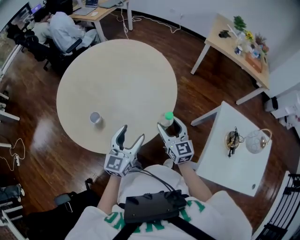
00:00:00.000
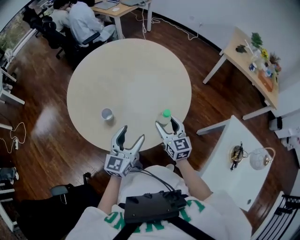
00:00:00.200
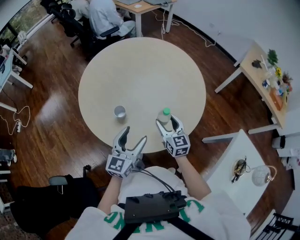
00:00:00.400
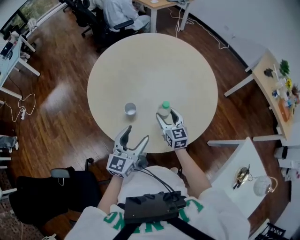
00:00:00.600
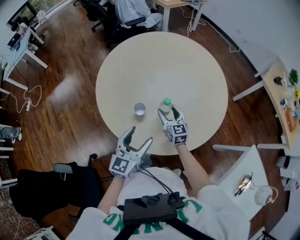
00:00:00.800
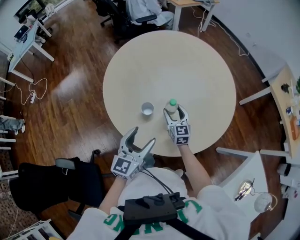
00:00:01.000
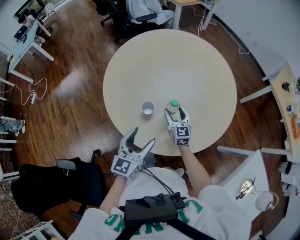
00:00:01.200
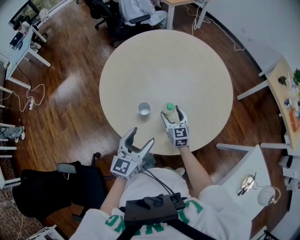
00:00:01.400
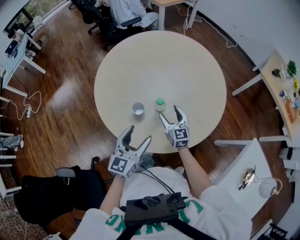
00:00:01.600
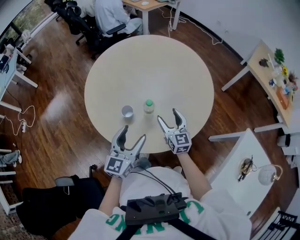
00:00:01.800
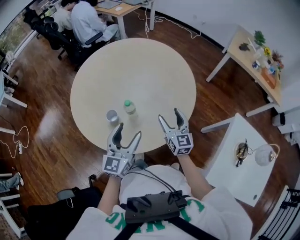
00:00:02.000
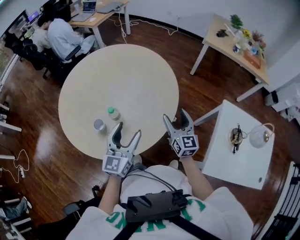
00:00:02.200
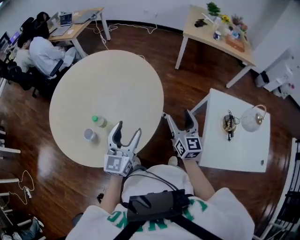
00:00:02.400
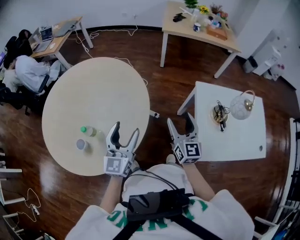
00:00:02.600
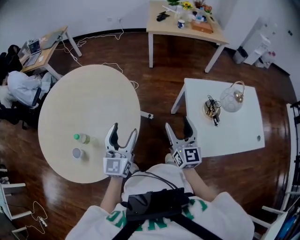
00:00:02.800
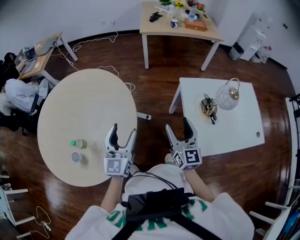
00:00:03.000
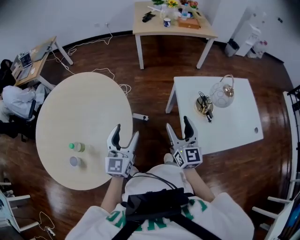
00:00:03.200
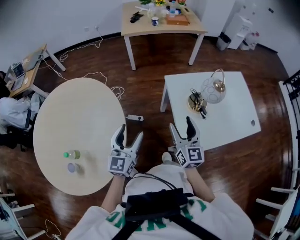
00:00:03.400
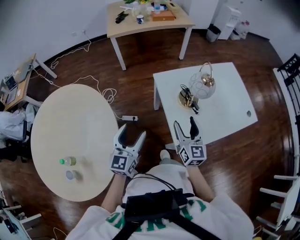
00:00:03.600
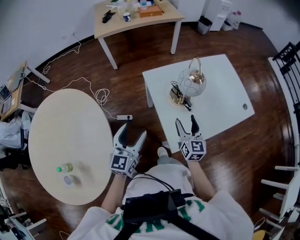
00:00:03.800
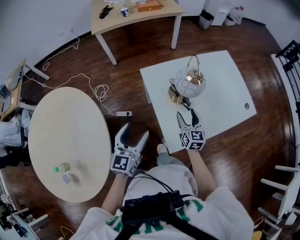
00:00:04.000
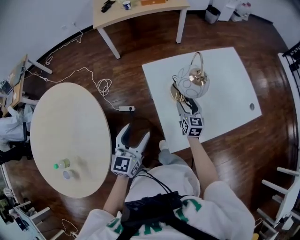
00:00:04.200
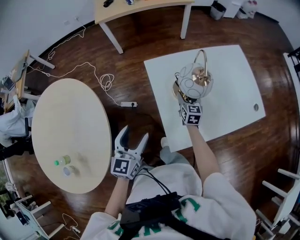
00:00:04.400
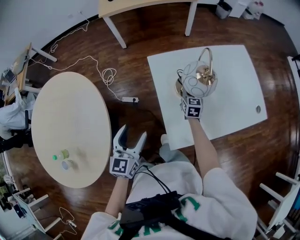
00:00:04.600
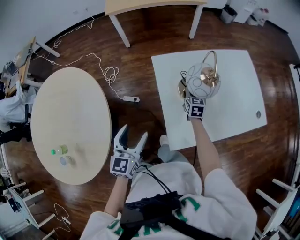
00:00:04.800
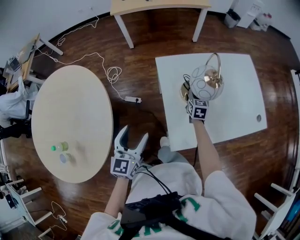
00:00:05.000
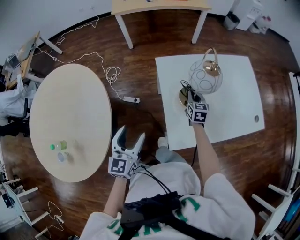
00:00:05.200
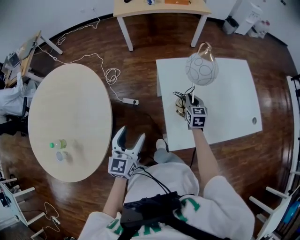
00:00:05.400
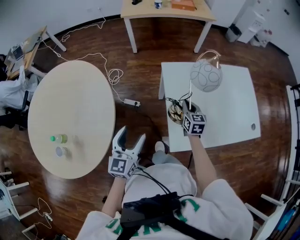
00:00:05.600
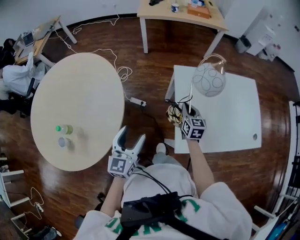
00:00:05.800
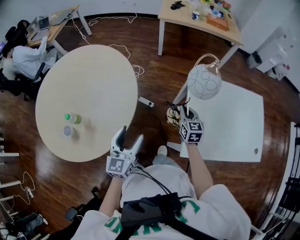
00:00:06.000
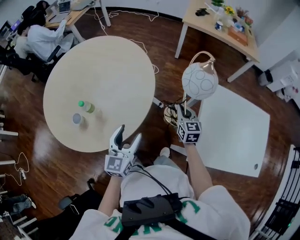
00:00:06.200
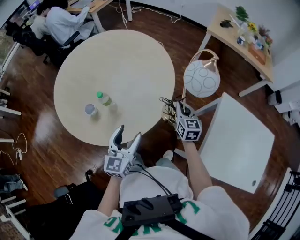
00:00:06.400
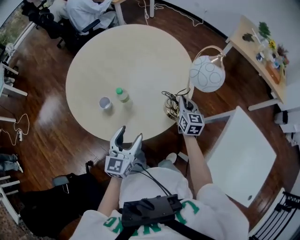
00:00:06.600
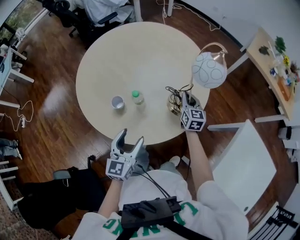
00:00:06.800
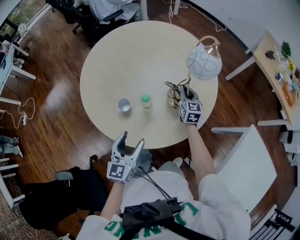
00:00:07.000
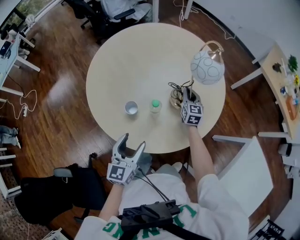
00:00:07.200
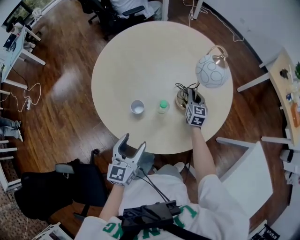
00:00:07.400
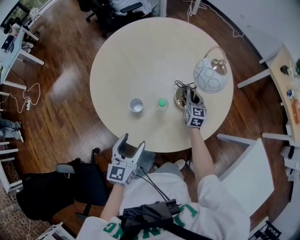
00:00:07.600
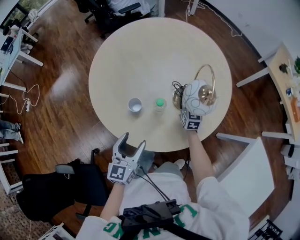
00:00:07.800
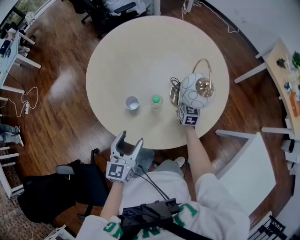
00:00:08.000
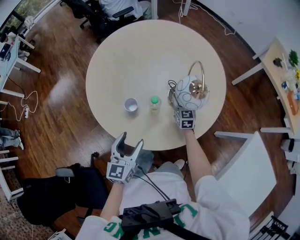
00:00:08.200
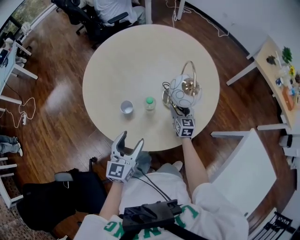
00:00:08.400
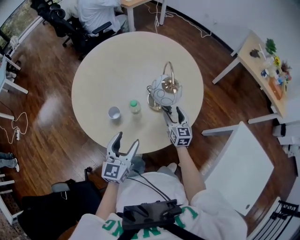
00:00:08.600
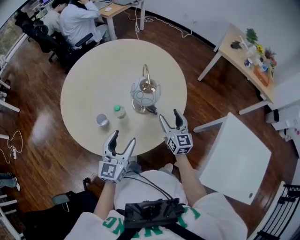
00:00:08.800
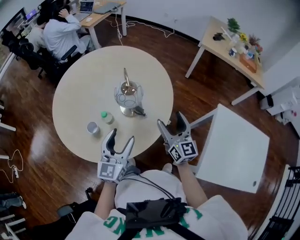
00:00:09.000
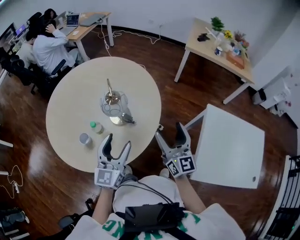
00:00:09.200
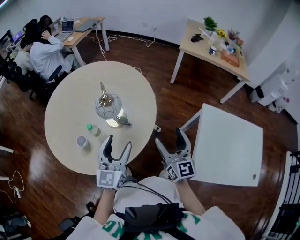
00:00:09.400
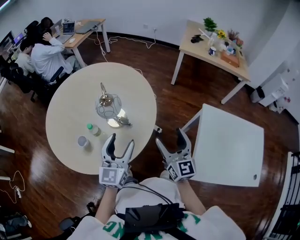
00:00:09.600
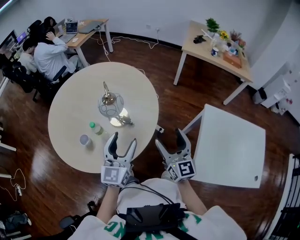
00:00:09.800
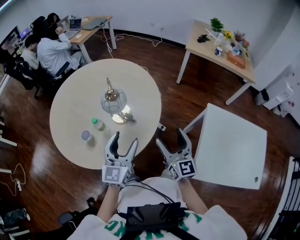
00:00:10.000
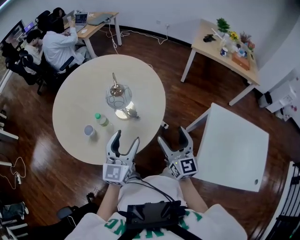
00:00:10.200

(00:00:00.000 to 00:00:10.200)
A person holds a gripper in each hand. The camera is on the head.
00:00:00.000 - 00:00:01.400: The left gripper goes about 20 cm to the left, and swivels roughly 20 degrees; the right gripper shifts approximately 35 cm to the left, forward and downward, and rotates about 20 degrees.
00:00:01.400 - 00:00:03.000: The right gripper moves some 60 cm, and turns by approximately 60 degrees. The left gripper changes place by roughly 35 cm, and rotates some 40 degrees.
00:00:03.000 - 00:00:04.400: The right gripper travels to the right, downward and forward by roughly 40 cm, and swivels some 30 degrees, while the left gripper travels to the right by about 25 cm, and turns by some 30 degrees.
00:00:04.400 - 00:00:05.800: The left gripper heads to the left and backward, covering some 15 cm, while the right gripper shifts about 15 cm to the left, upward and backward, and closes up.
00:00:05.800 - 00:00:07.200: The pair of grippers is taken about 50 cm. The left gripper turns by roughly 50 degrees. Meanwhile the right gripper turns by about 50 degrees.
00:00:07.200 - 00:00:08.800: The left gripper travels to the right and upward by some 10 cm. Meanwhile the right gripper moves backward and upward, some 20 cm, and opens up.
00:00:08.800 - 00:00:10.200: The left gripper goes some 15 cm to the right and upward, while the right gripper travels to the right, backward and upward by roughly 20 cm.

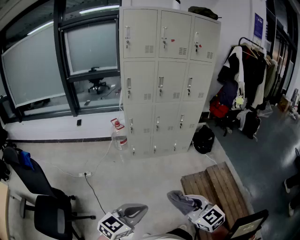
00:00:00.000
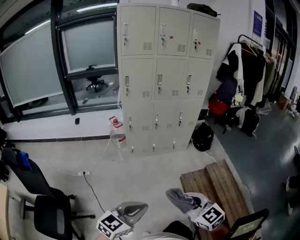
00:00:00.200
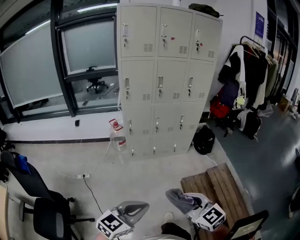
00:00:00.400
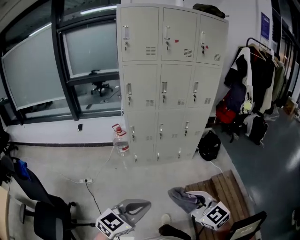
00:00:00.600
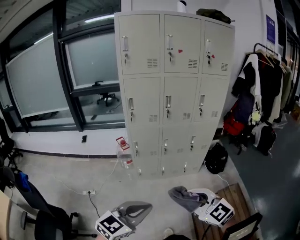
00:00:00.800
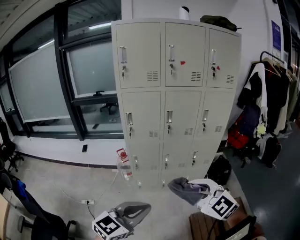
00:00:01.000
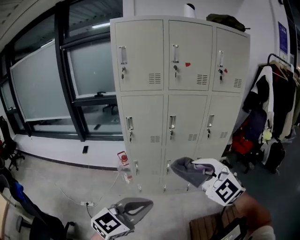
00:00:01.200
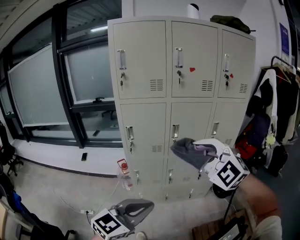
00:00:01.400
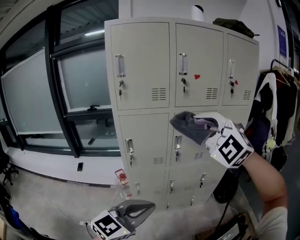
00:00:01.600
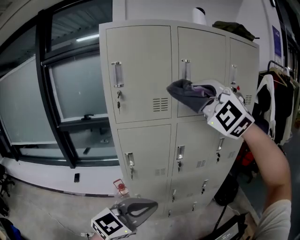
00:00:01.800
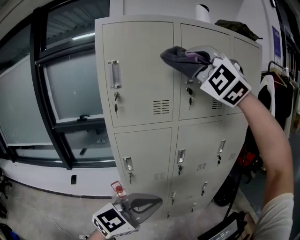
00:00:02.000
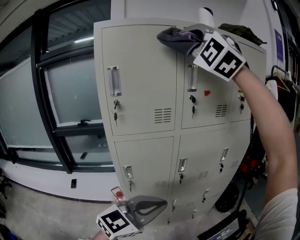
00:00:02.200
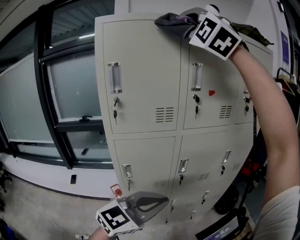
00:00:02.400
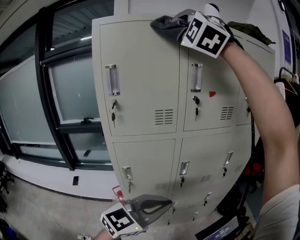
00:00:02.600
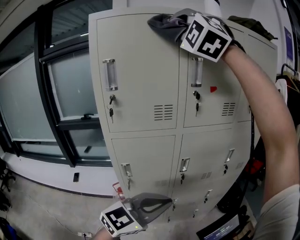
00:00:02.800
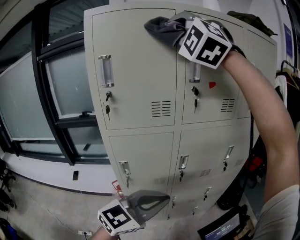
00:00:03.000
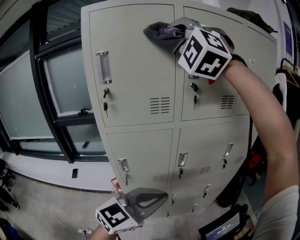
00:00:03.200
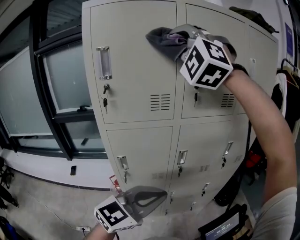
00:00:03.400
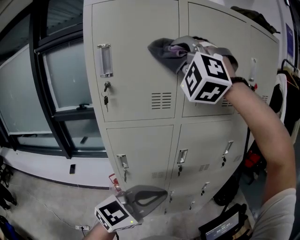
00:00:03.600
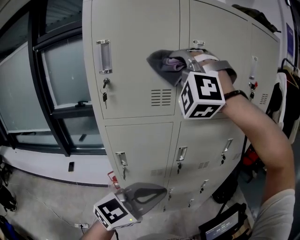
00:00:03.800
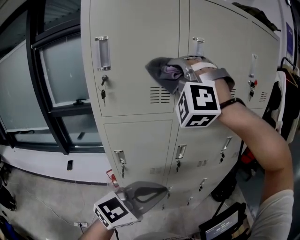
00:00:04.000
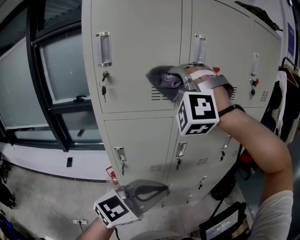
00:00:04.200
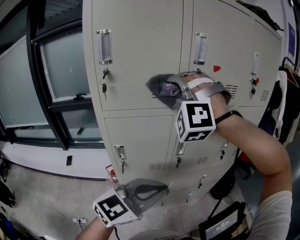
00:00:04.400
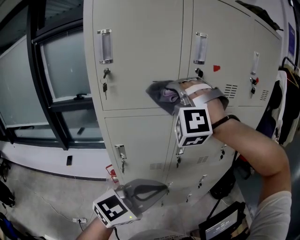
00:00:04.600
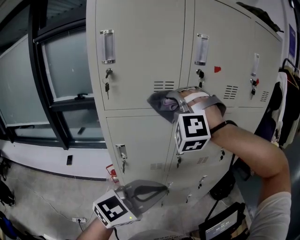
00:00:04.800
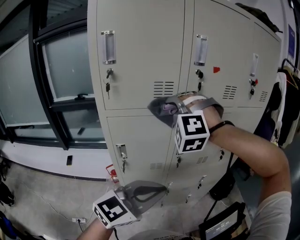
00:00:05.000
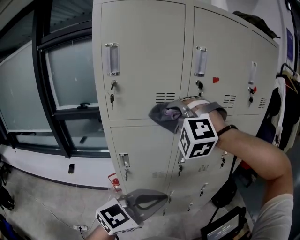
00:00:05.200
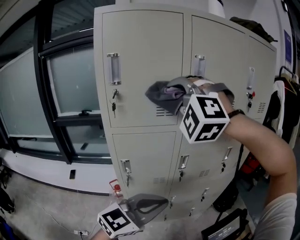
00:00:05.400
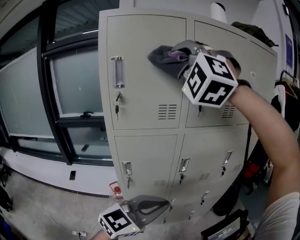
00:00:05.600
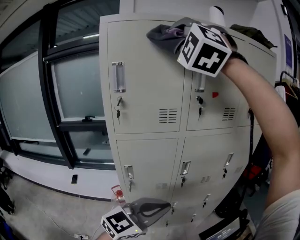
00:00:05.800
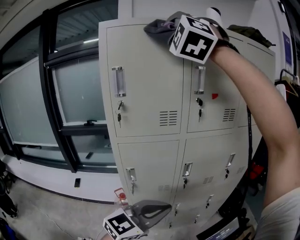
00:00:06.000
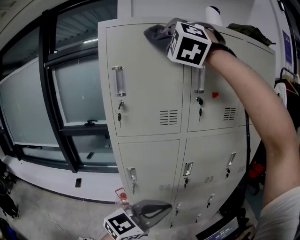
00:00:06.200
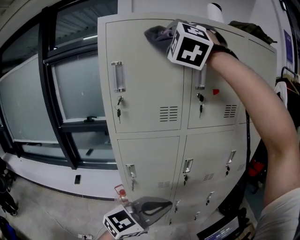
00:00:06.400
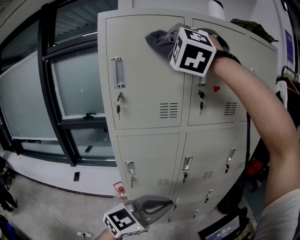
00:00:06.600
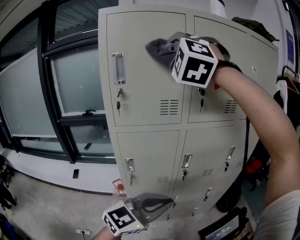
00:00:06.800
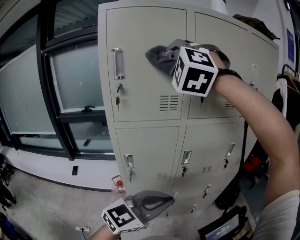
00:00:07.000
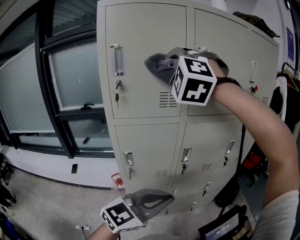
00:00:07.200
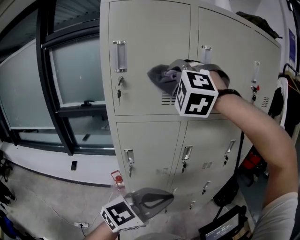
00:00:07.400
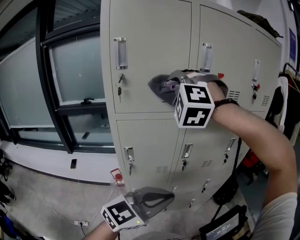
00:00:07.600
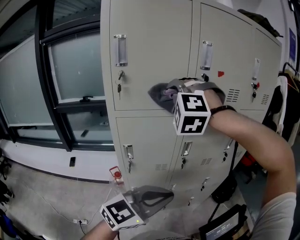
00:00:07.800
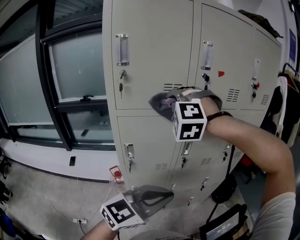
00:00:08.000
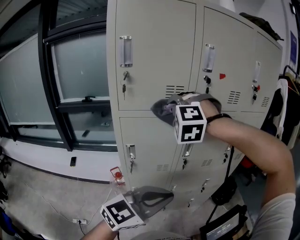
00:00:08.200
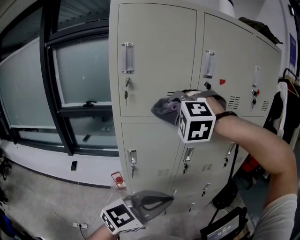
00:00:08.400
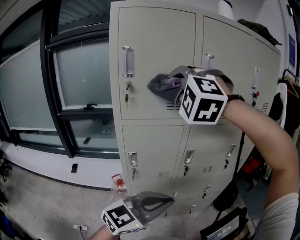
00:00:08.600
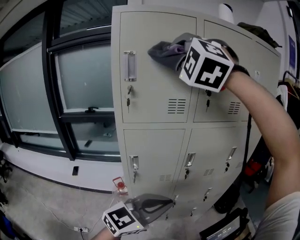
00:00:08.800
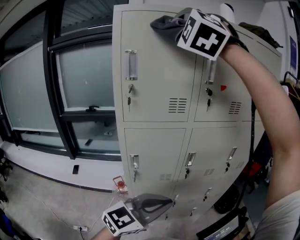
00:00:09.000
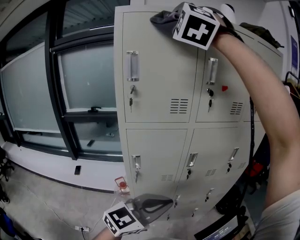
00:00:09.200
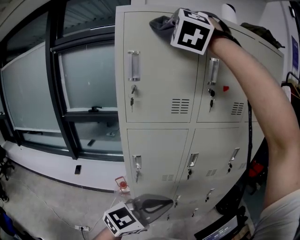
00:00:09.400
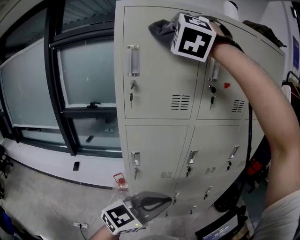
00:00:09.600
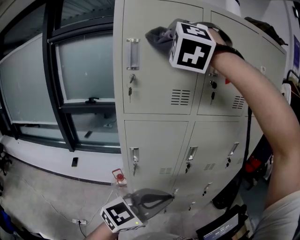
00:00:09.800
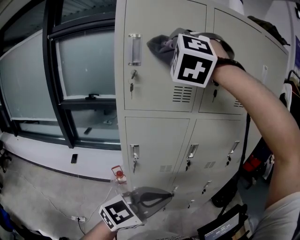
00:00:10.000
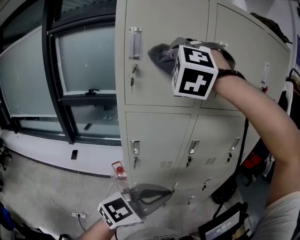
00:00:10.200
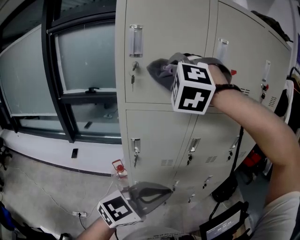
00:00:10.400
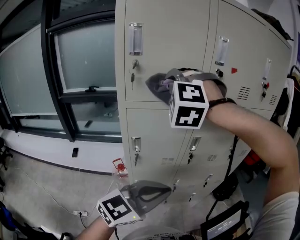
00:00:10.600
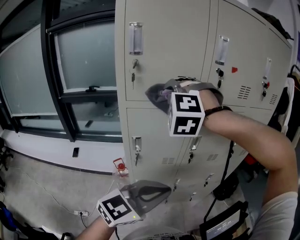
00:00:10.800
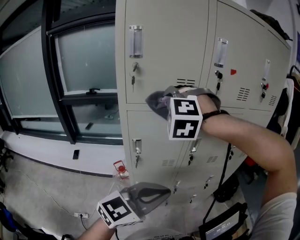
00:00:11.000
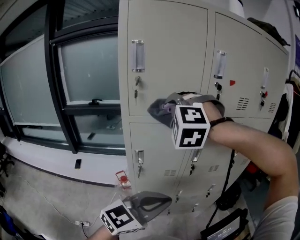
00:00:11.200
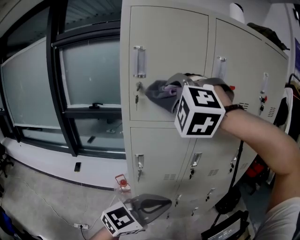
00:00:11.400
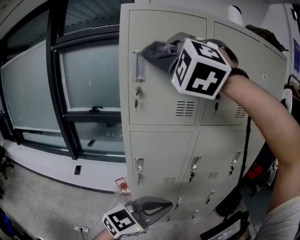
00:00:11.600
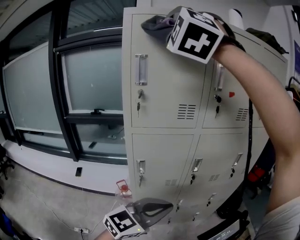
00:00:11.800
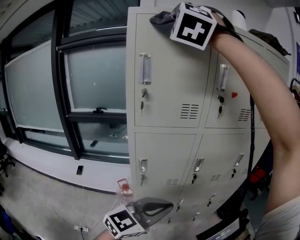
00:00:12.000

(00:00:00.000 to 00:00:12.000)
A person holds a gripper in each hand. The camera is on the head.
00:00:00.000 - 00:00:01.600: The left gripper shifts by about 50 cm.
00:00:01.600 - 00:00:03.000: The left gripper shifts by roughly 20 cm.

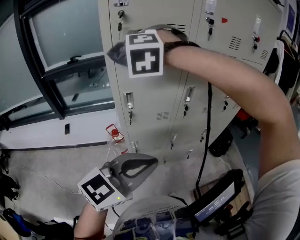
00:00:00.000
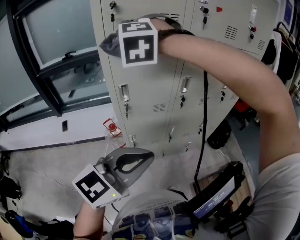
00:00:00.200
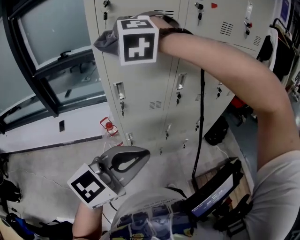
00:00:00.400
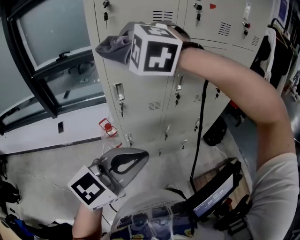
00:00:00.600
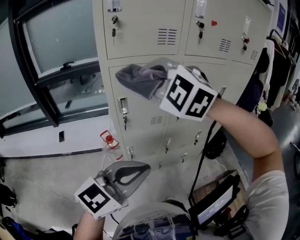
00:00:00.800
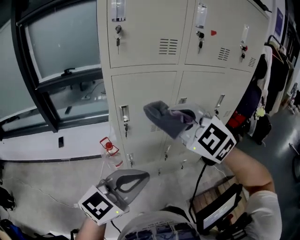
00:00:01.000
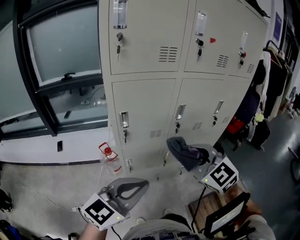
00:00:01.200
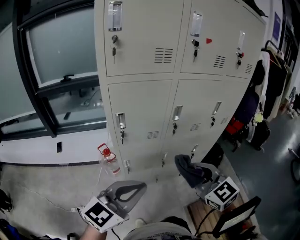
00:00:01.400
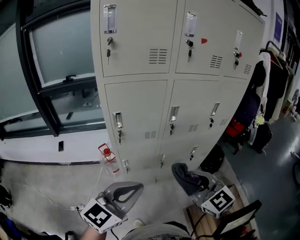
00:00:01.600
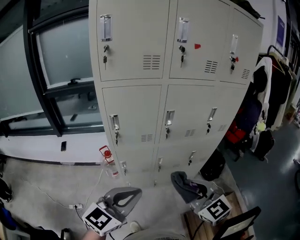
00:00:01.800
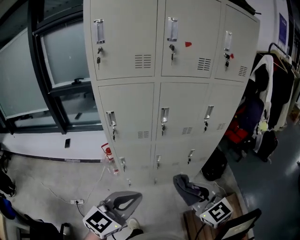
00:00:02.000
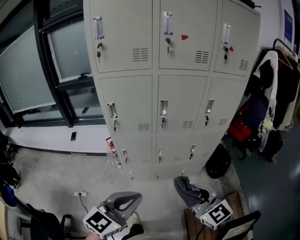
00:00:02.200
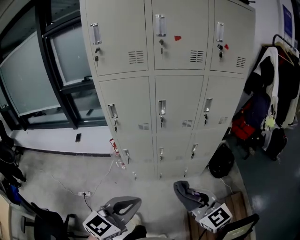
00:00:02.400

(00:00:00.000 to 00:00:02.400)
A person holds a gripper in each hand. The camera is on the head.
00:00:01.200 - 00:00:02.400: The left gripper ends up roughly 25 cm from where it was.
